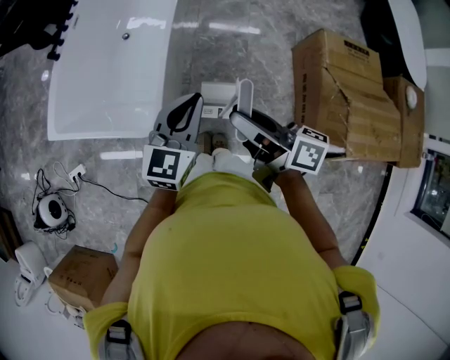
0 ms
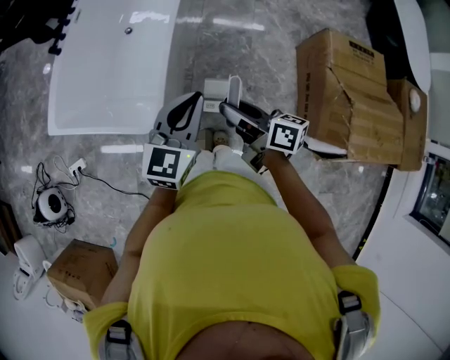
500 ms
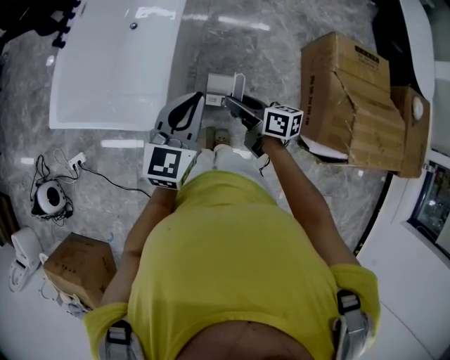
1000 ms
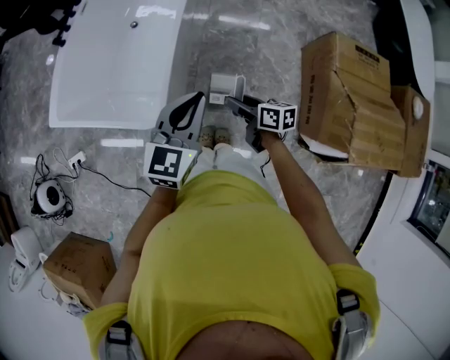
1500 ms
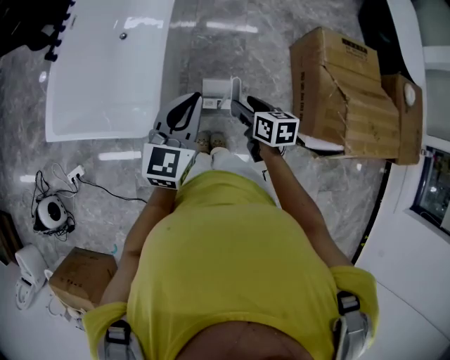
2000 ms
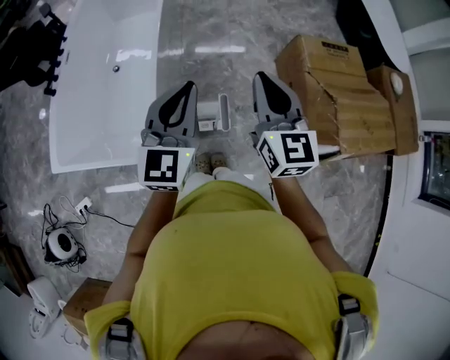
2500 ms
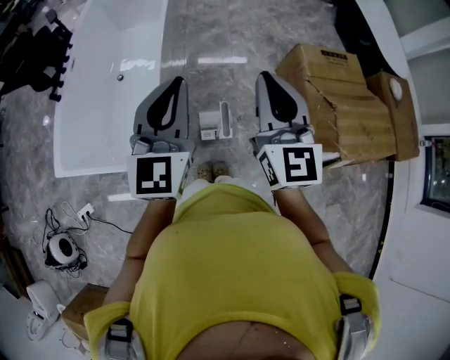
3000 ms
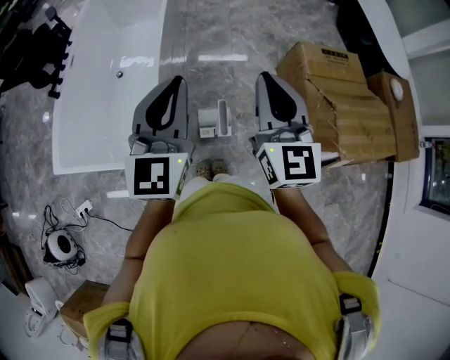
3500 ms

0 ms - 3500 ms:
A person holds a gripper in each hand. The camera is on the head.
0 ms - 2000 ms: The right gripper shifts about 20 cm downward, and angles its fingers downward, by about 40 degrees.
2000 ms - 3500 ms: The left gripper travels upward by about 15 cm. The right gripper shifts some 30 cm upward, tilts its fingers approximately 40 degrees upward, and closes up.

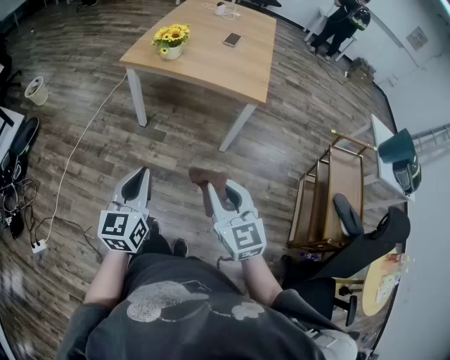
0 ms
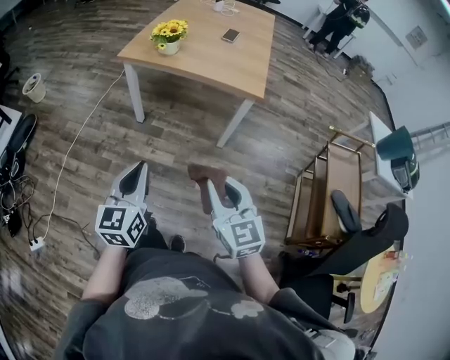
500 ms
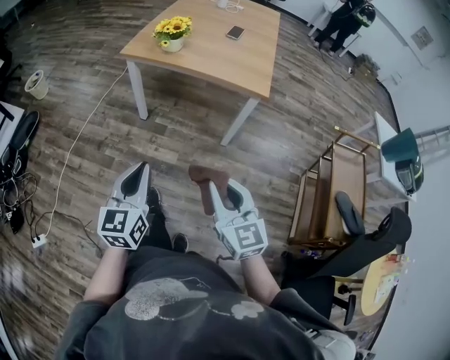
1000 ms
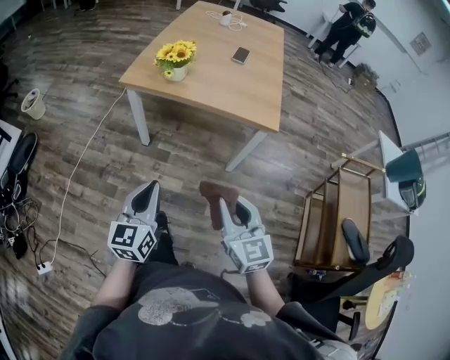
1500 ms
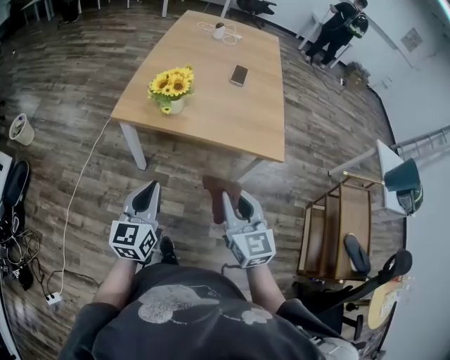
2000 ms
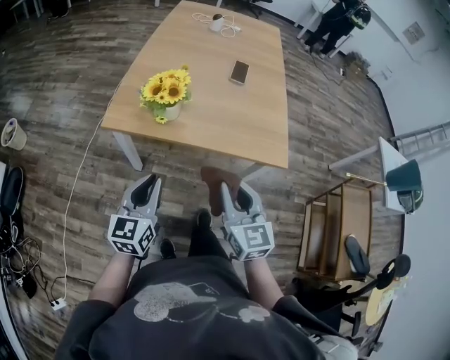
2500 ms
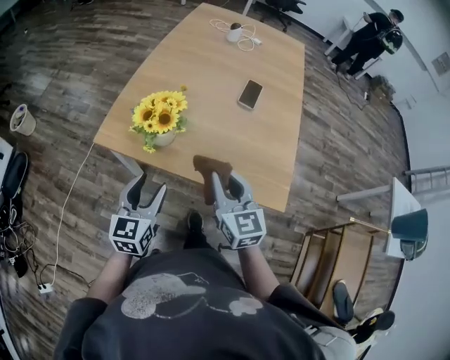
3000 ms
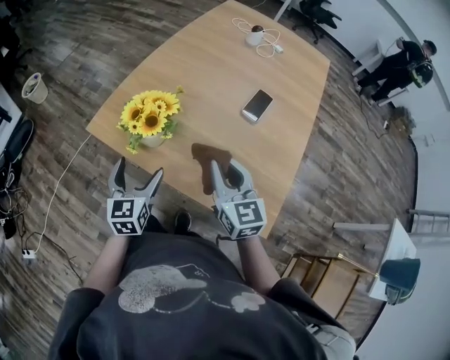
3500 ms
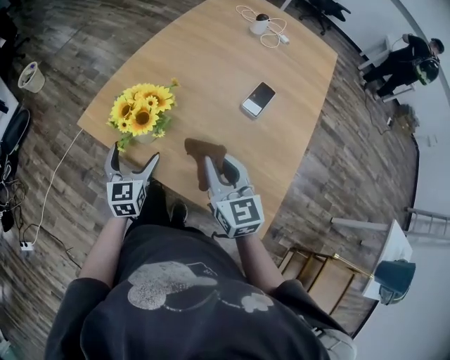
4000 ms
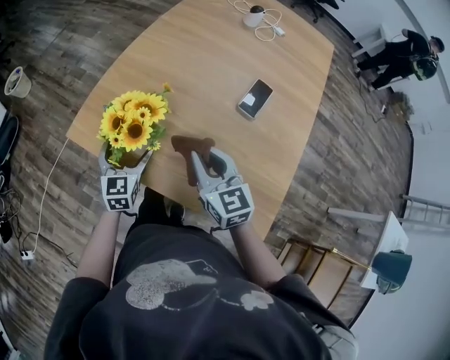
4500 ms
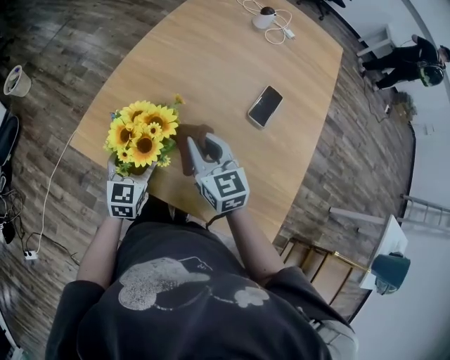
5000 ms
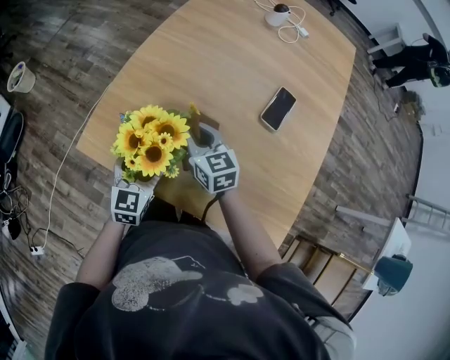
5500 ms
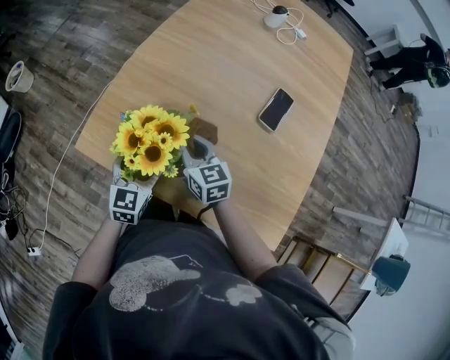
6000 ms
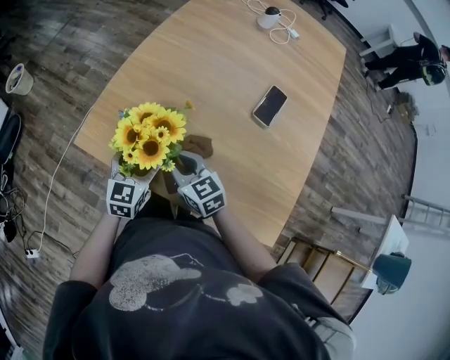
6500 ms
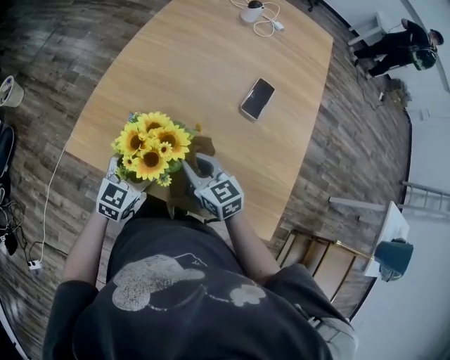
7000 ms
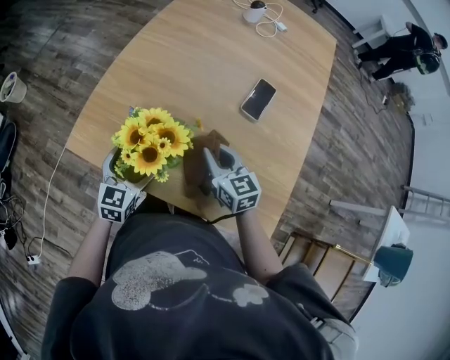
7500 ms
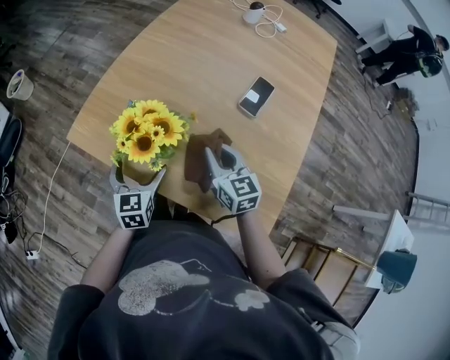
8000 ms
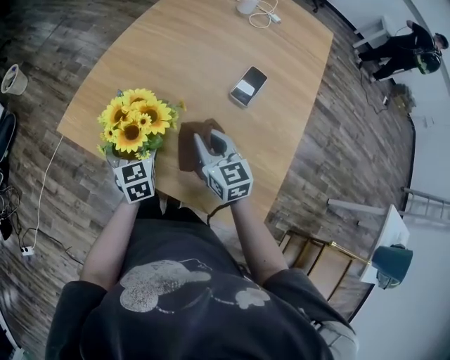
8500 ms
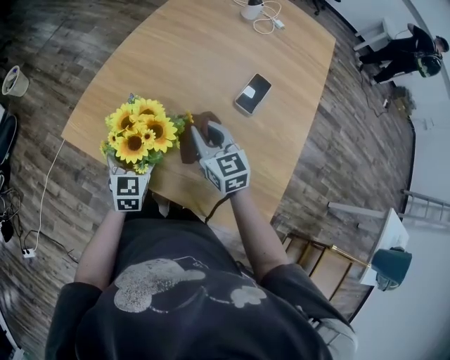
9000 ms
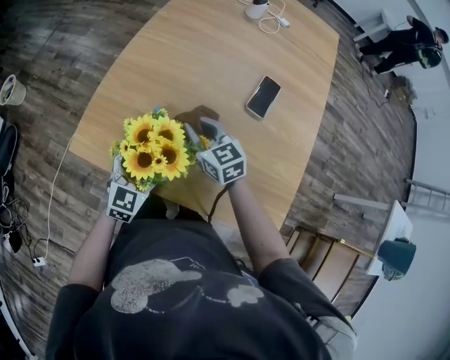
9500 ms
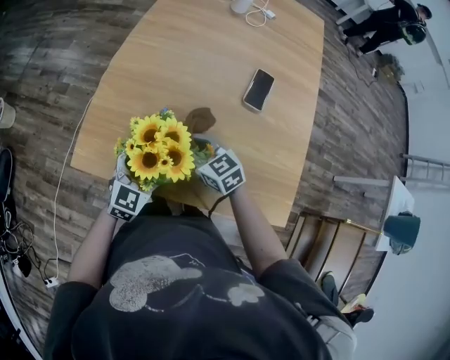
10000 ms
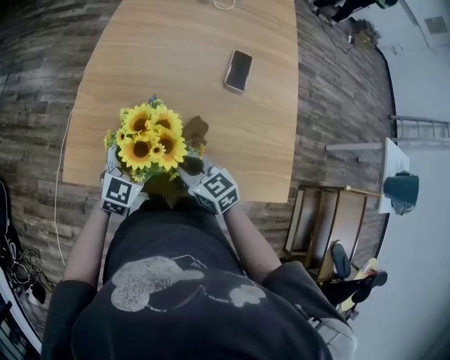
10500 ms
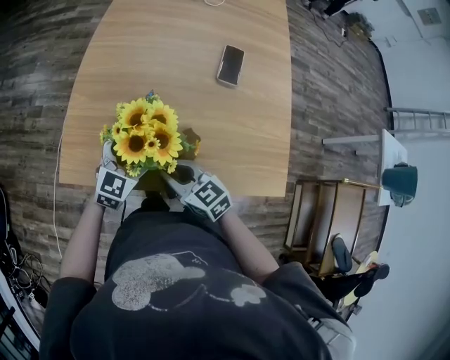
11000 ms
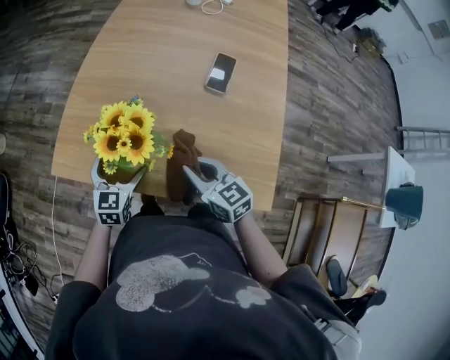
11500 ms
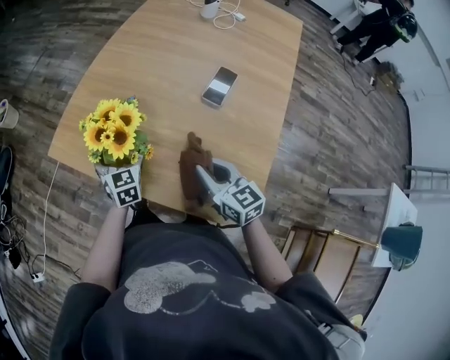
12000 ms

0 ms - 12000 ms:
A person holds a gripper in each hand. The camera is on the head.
0 ms - 2000 ms: The grippers both shift forward by approximately 30 cm.
2000 ms - 4000 ms: The left gripper ends up about 35 cm from where it was, turns by some 30 degrees, and opens up; the right gripper shifts by some 35 cm, and swivels approximately 20 degrees.
4000 ms - 6000 ms: The left gripper goes some 5 cm forward. The right gripper heads forward, downward and to the left, covering some 20 cm.
6000 ms - 8000 ms: The left gripper travels backward by about 5 cm. The right gripper travels to the right and backward by some 15 cm.
8000 ms - 10000 ms: The left gripper changes its angle by approximately 40 degrees, while the right gripper heads to the left and forward, covering roughly 15 cm.
10000 ms - 12000 ms: The right gripper shifts by about 20 cm, while the left gripper swivels roughly 50 degrees.

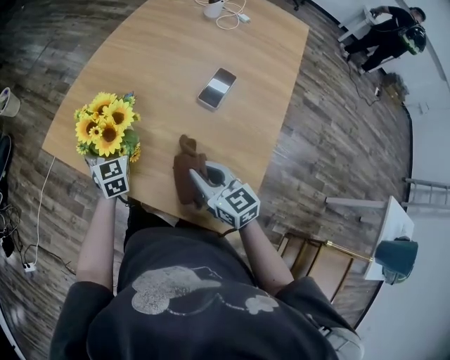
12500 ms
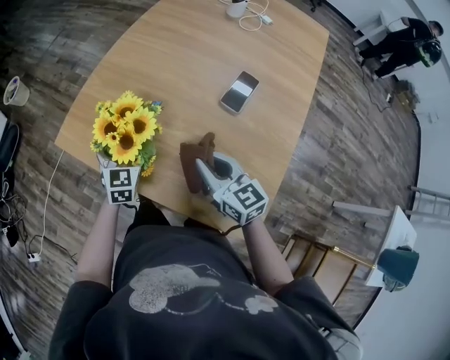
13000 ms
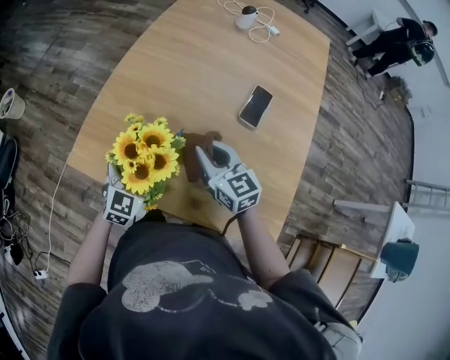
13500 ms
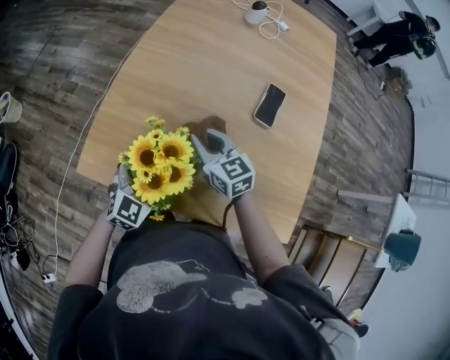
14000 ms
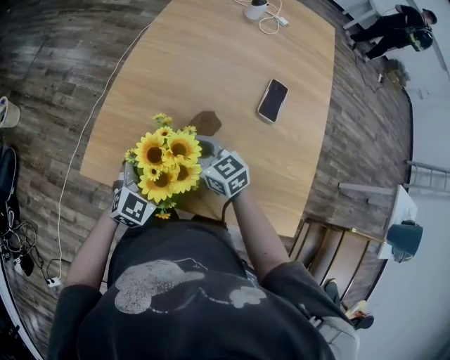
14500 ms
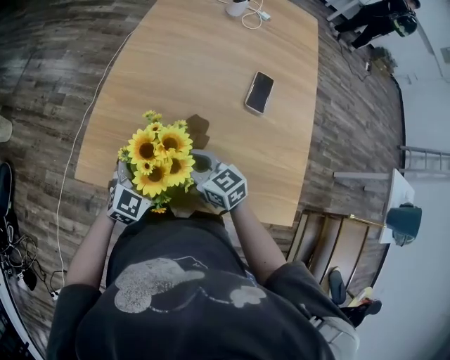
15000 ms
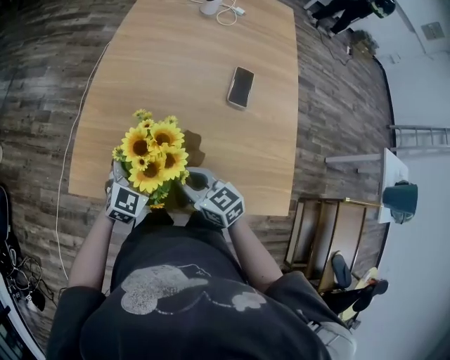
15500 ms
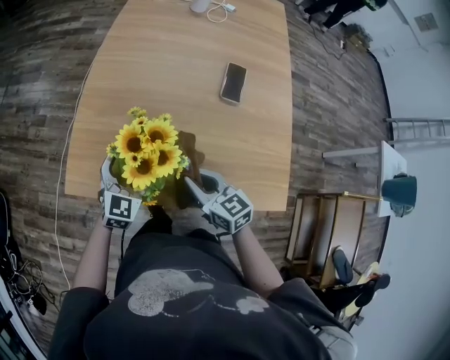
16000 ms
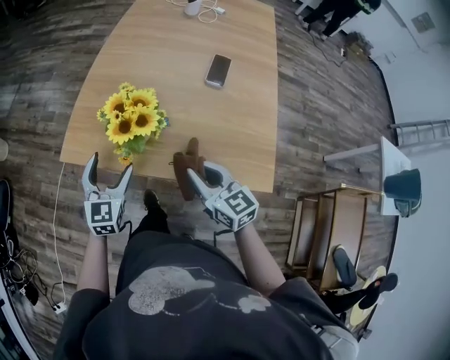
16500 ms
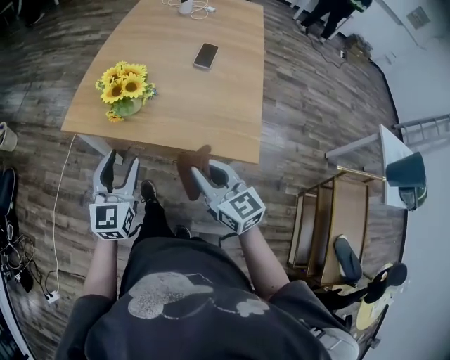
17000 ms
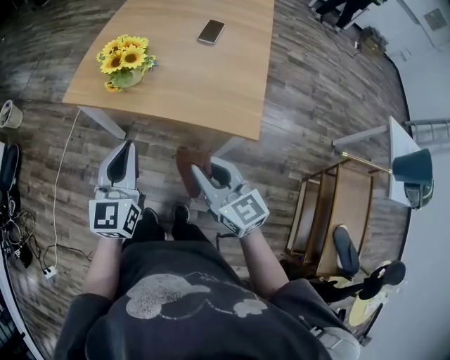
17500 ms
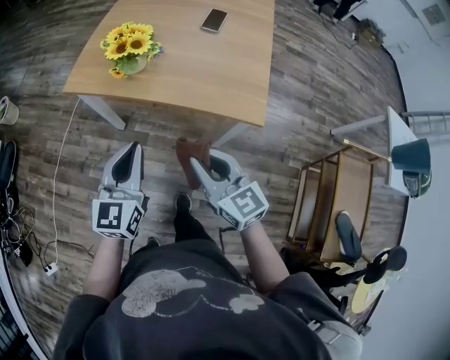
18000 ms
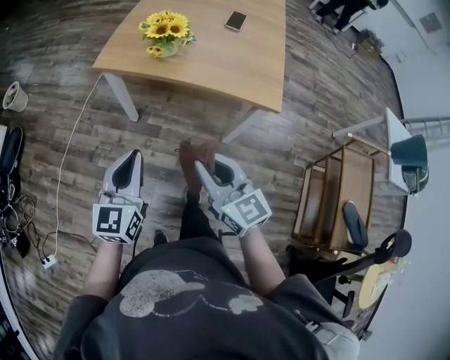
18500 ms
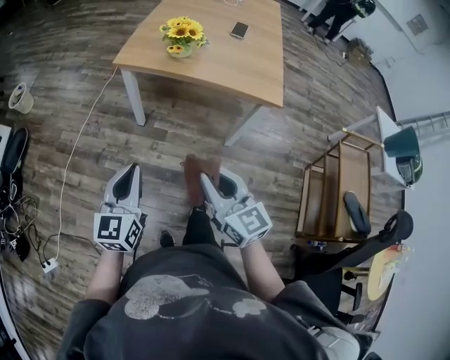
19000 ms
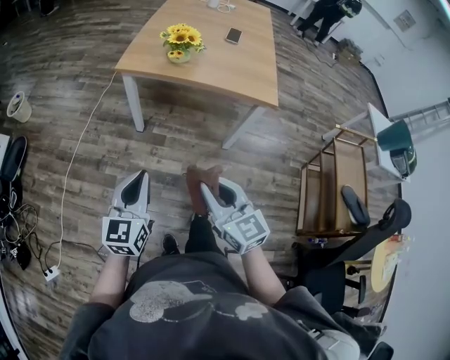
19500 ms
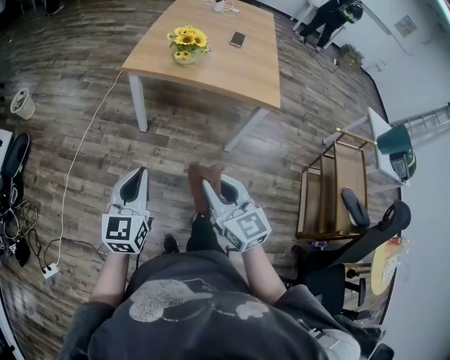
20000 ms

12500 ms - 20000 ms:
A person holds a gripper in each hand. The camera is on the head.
12500 ms - 14500 ms: The right gripper changes place by some 25 cm; the left gripper swivels roughly 60 degrees.
14500 ms - 16500 ms: The left gripper moves backward, to the left and upward, about 10 cm, and swivels about 30 degrees, while the right gripper shifts about 25 cm backward and to the right, and rotates some 20 degrees.
16500 ms - 18000 ms: The grippers both shift backward by approximately 25 cm. The left gripper closes.
18000 ms - 20000 ms: The two grippers go about 30 cm backward and to the left.

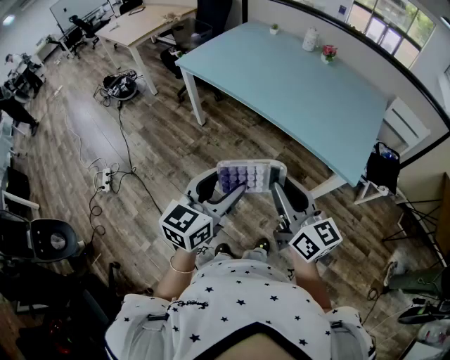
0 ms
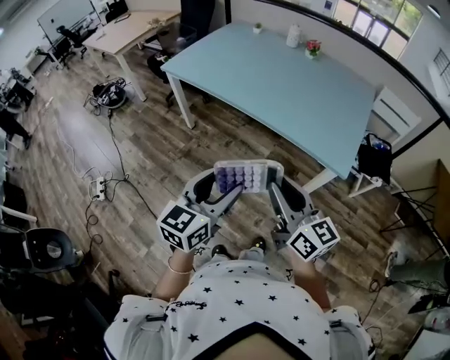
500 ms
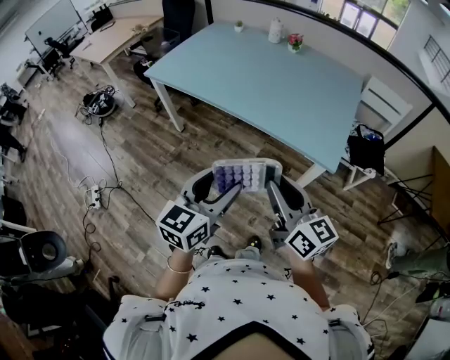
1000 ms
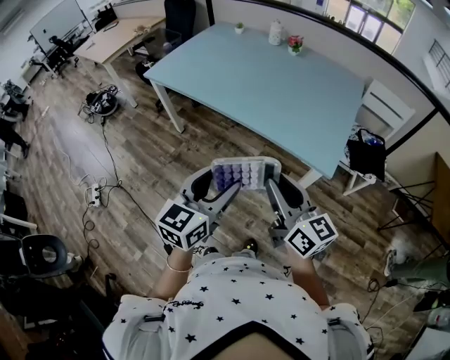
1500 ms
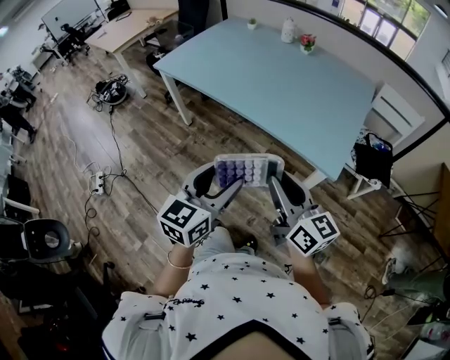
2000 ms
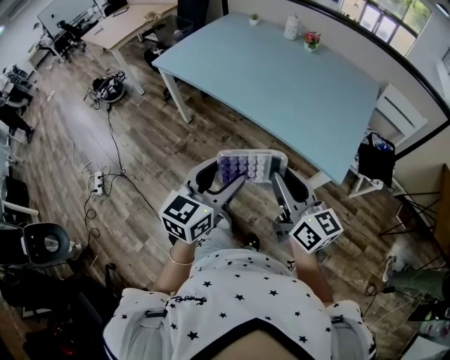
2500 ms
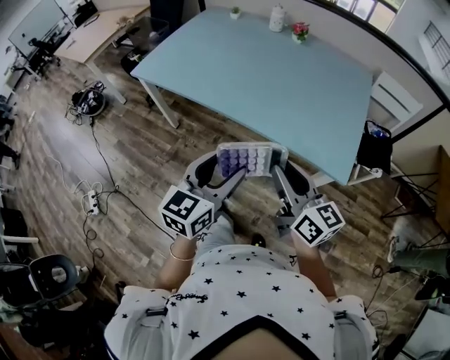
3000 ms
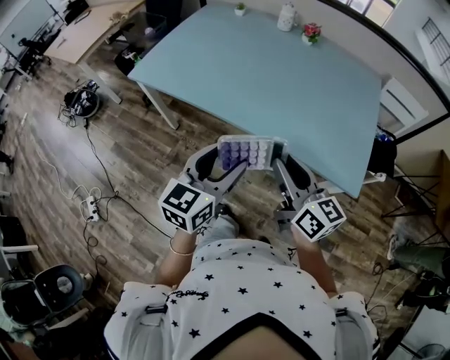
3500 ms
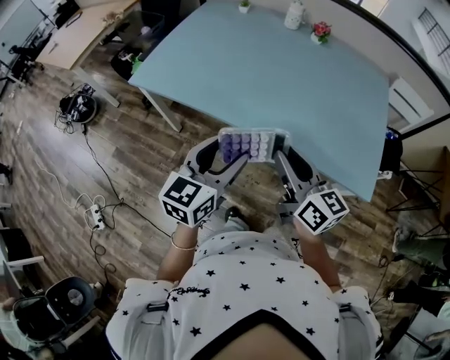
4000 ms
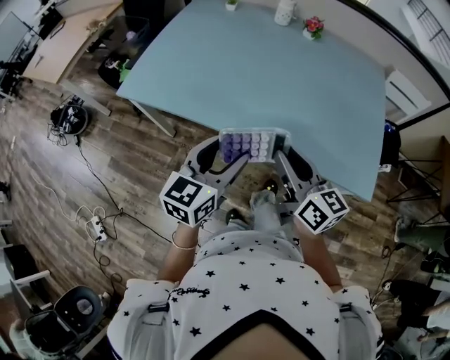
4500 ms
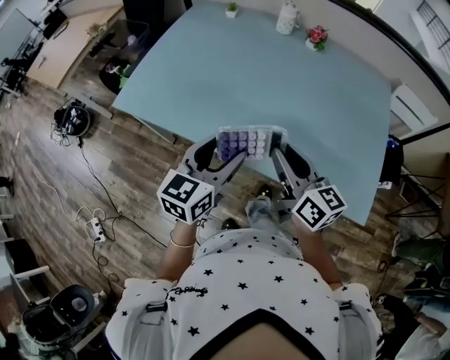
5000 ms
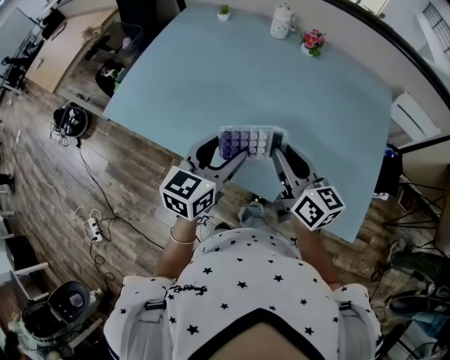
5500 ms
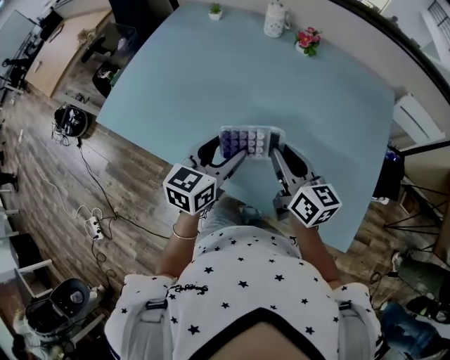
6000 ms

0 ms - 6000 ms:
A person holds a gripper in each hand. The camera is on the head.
0 ms - 2000 ms: Both grippers travel together to the right, approximately 10 cm.
2000 ms - 4000 ms: The two grippers go about 30 cm forward and to the left.
4000 ms - 6000 ms: The two grippers go some 25 cm forward and to the right.
